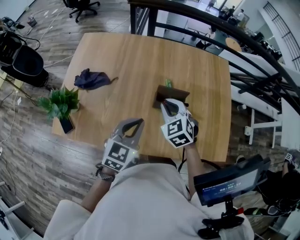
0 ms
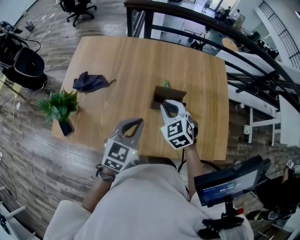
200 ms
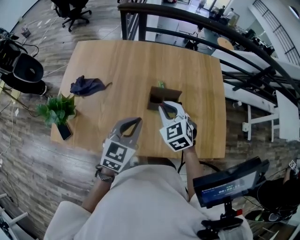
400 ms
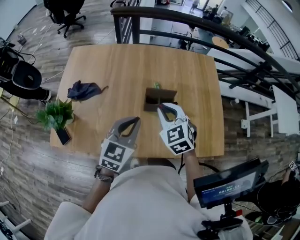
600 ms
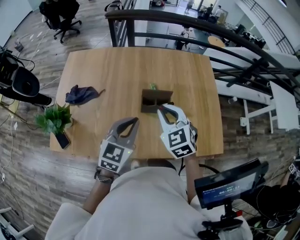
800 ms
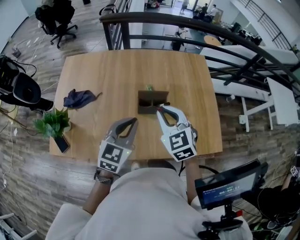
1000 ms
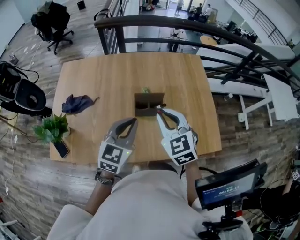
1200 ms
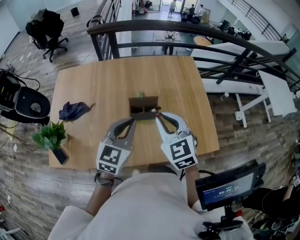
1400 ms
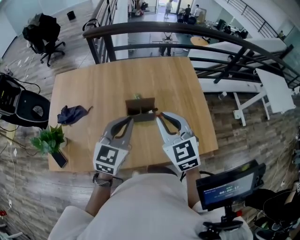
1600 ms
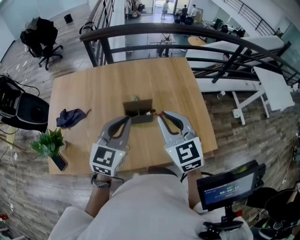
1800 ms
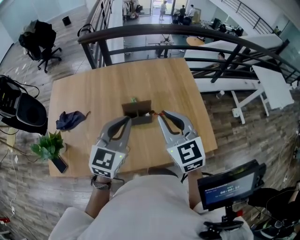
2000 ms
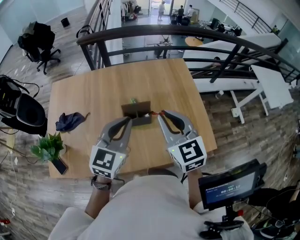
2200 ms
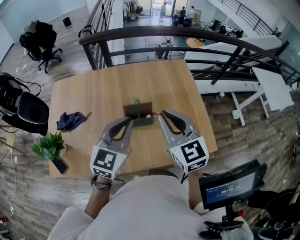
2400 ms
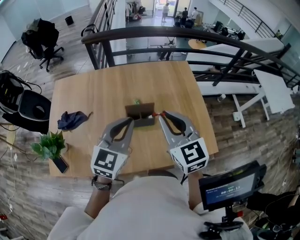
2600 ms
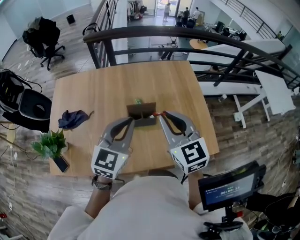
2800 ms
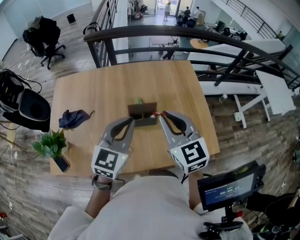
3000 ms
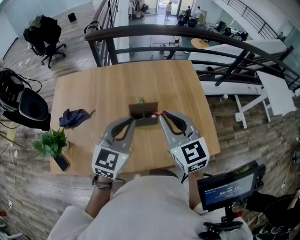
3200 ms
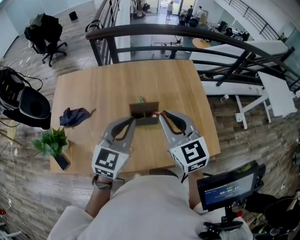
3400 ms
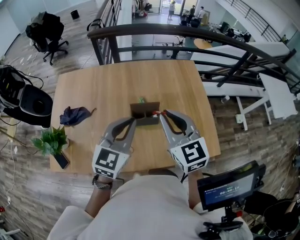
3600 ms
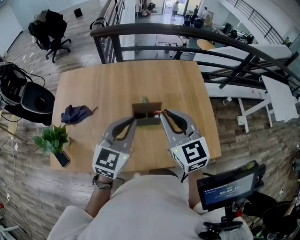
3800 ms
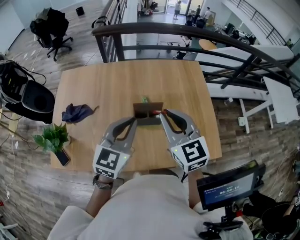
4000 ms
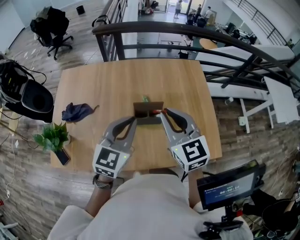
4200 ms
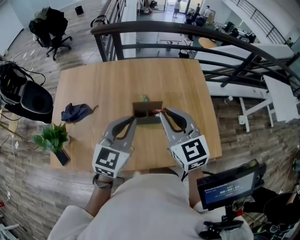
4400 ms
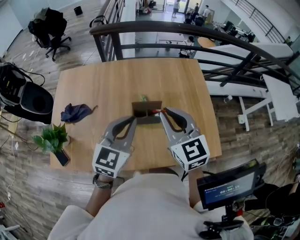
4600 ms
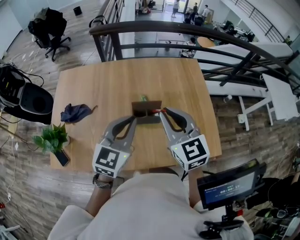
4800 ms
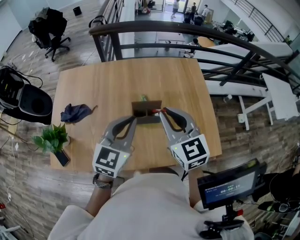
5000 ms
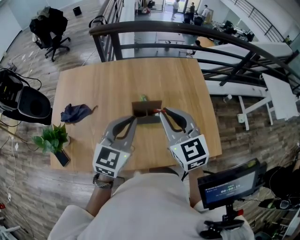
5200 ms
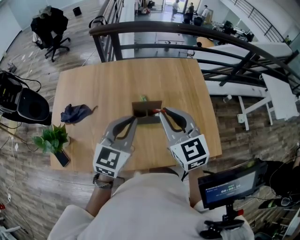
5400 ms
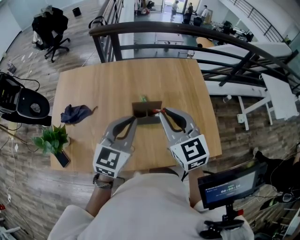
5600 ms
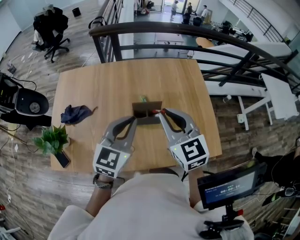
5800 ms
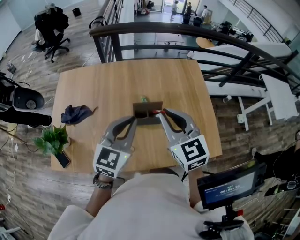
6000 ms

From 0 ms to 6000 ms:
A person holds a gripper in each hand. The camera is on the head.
From 0 ms to 1600 ms: The right gripper goes about 15 cm upward, to the right and backward, and swivels roughly 30 degrees, while the left gripper shifts some 10 cm upward and to the right.
From 1600 ms to 4400 ms: The grippers make only small movements.
From 4400 ms to 6000 ms: The two grippers keep their place.

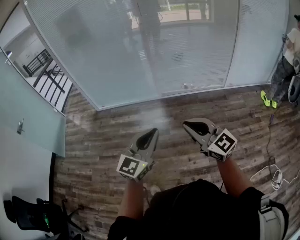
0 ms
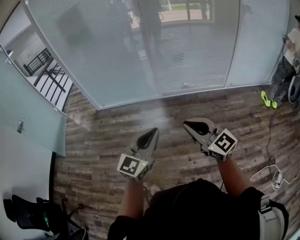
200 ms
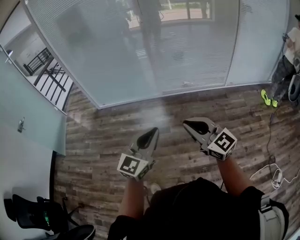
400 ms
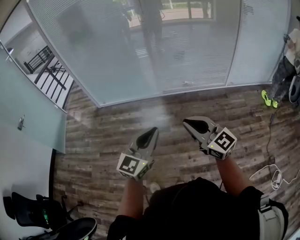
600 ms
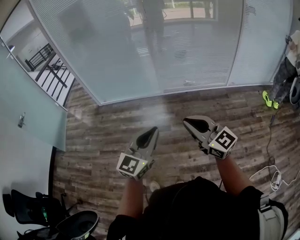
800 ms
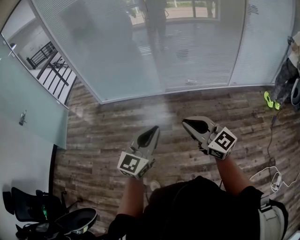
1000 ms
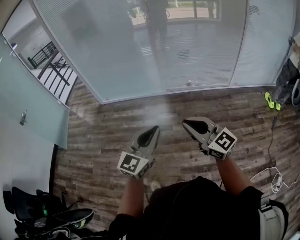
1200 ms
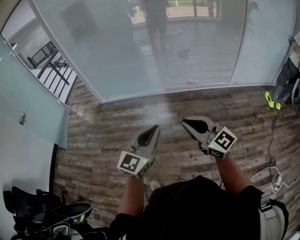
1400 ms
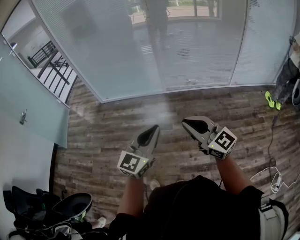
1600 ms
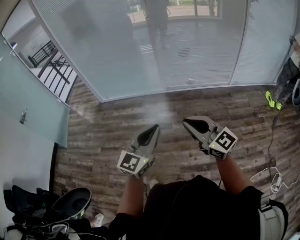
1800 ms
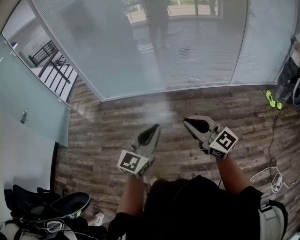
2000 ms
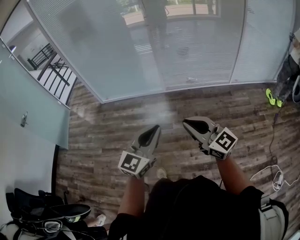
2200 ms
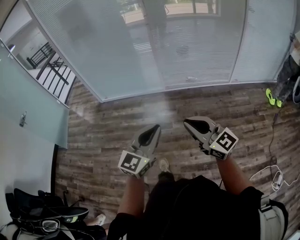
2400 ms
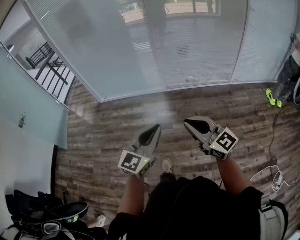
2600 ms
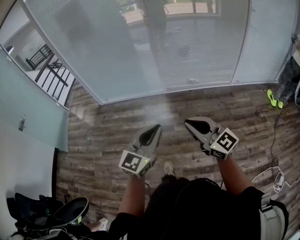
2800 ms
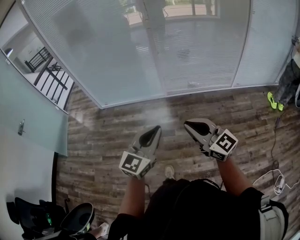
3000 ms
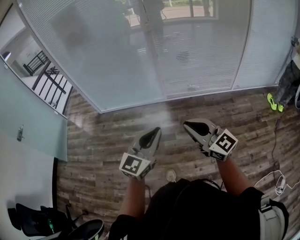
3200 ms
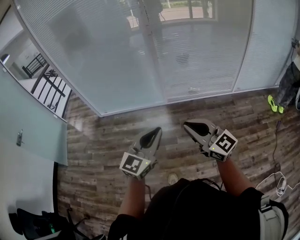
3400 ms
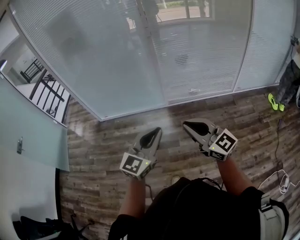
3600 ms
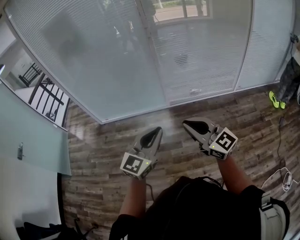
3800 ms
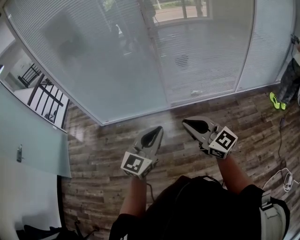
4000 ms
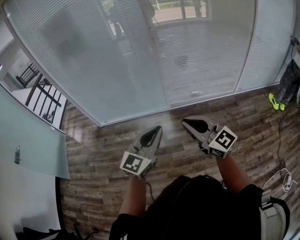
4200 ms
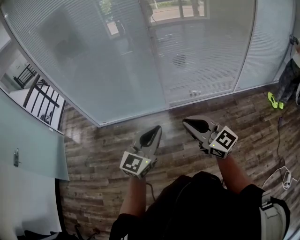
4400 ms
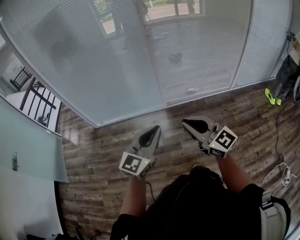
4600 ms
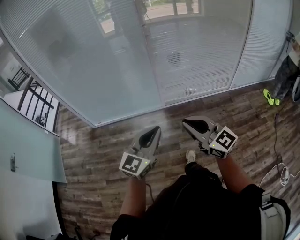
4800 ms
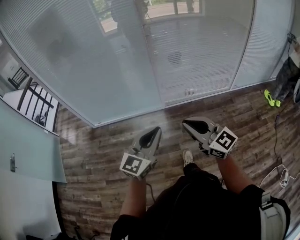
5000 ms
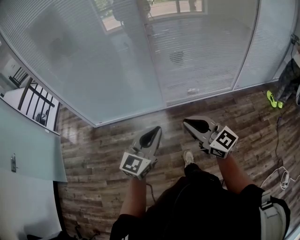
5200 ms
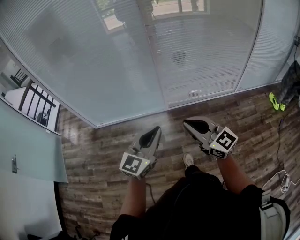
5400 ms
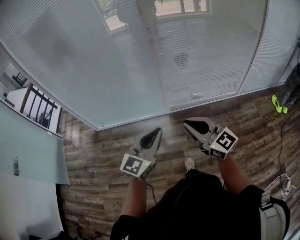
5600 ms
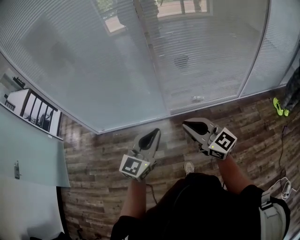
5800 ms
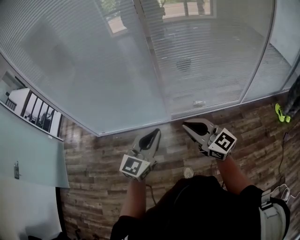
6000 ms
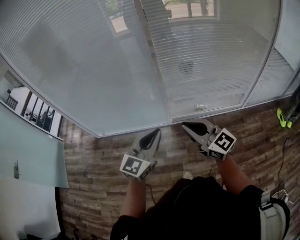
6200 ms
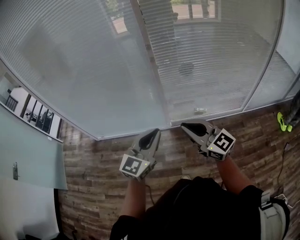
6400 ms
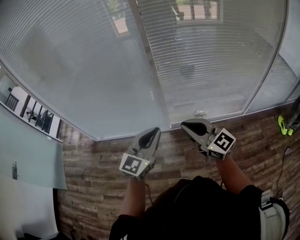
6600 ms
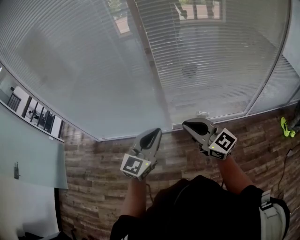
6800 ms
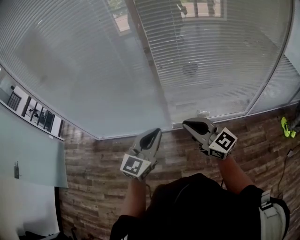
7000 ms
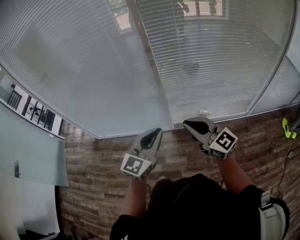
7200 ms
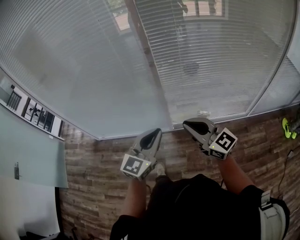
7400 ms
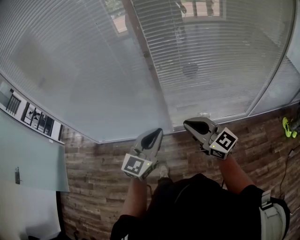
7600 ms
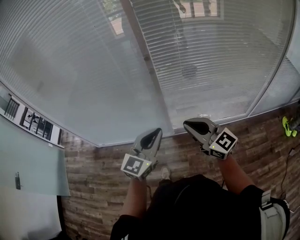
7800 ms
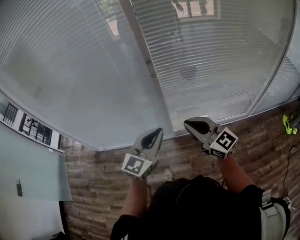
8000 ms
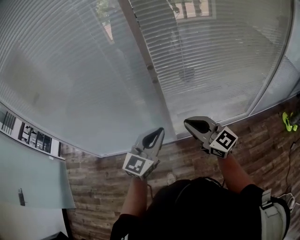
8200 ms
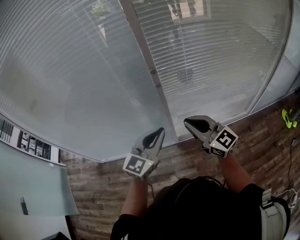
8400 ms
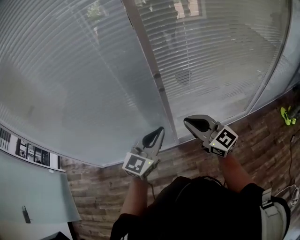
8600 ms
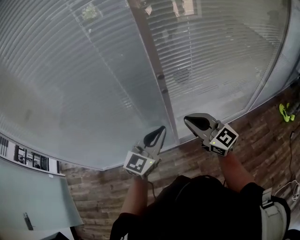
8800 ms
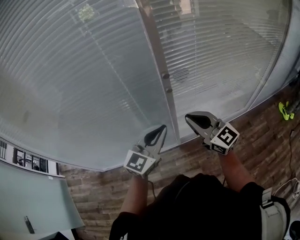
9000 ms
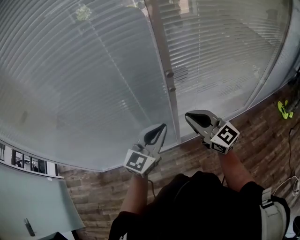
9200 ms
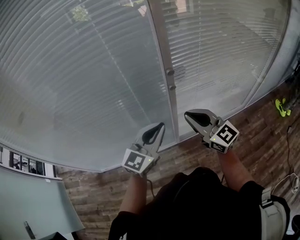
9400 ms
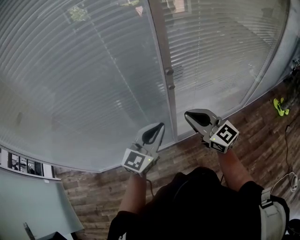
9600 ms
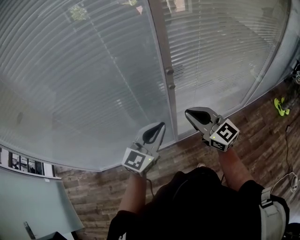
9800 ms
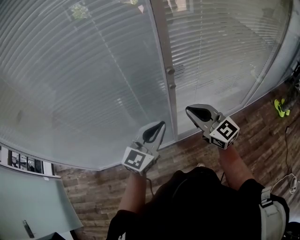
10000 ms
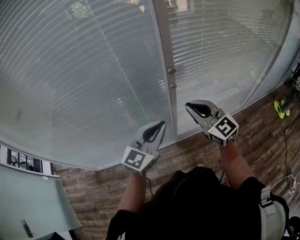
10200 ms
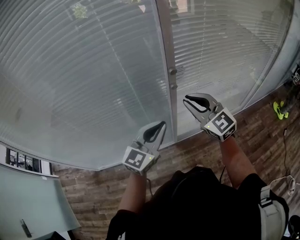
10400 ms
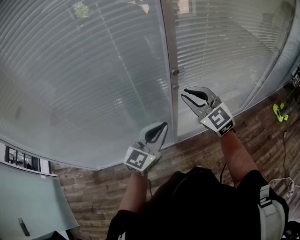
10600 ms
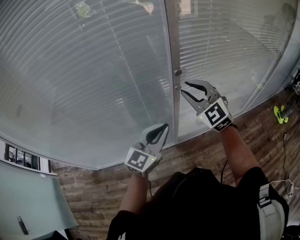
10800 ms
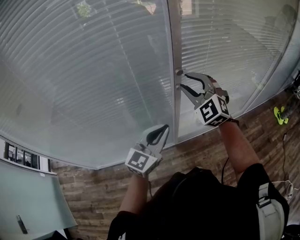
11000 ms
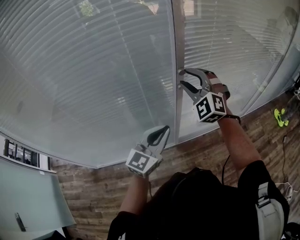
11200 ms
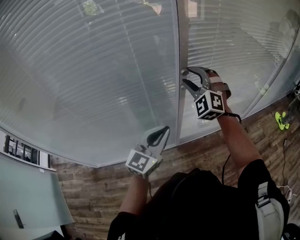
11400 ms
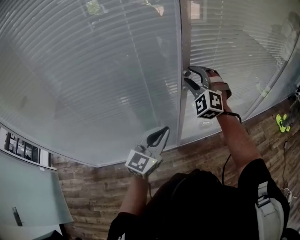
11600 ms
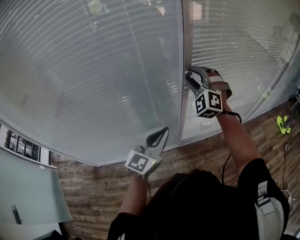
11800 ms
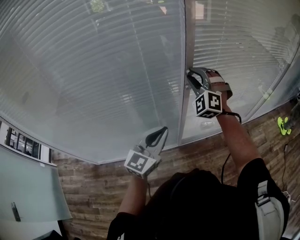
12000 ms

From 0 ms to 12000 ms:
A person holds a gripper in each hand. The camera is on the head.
From 0 ms to 1600 ms: There are only small adjustments of the grippers.
From 1600 ms to 3000 ms: The grippers both shift forward by approximately 10 cm.
From 3000 ms to 4400 ms: The grippers both shift forward and to the left by about 20 cm.
From 4400 ms to 6000 ms: Both grippers travel together forward, approximately 20 cm.
From 6000 ms to 7600 ms: Both grippers travel together forward and to the right, about 15 cm.
From 7600 ms to 9000 ms: The two grippers go roughly 20 cm forward and to the left.
From 9000 ms to 10400 ms: The right gripper moves forward, roughly 5 cm, and changes its angle by about 20 degrees.
From 10400 ms to 12000 ms: The right gripper travels forward by approximately 10 cm, rotates around the line of its fingers by some 50 degrees, counterclockwise from behind, and opens.

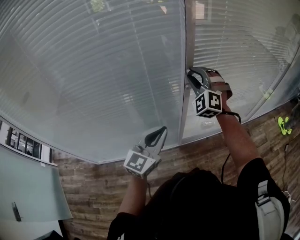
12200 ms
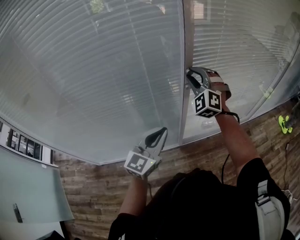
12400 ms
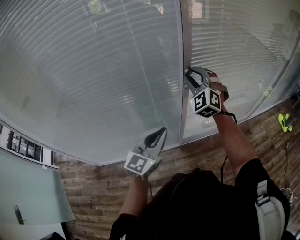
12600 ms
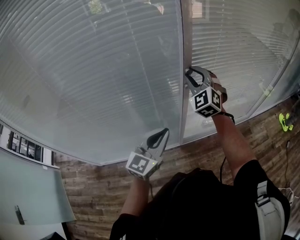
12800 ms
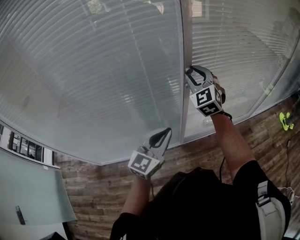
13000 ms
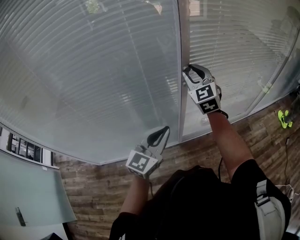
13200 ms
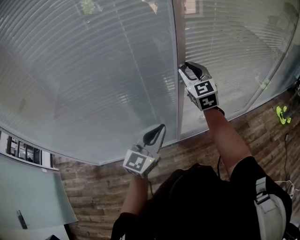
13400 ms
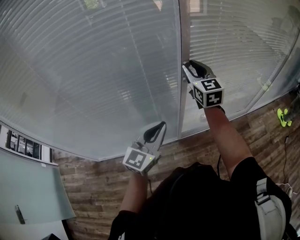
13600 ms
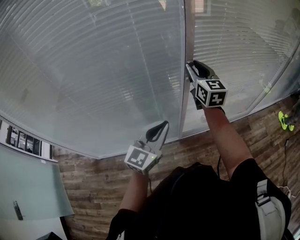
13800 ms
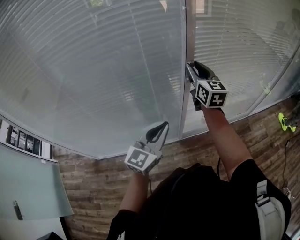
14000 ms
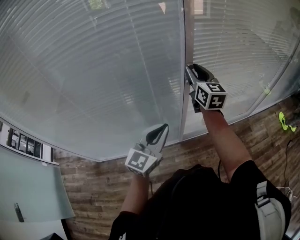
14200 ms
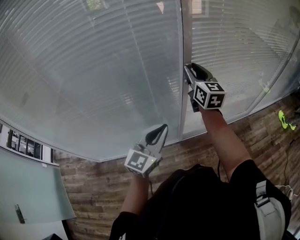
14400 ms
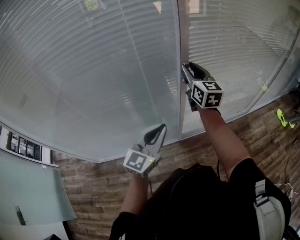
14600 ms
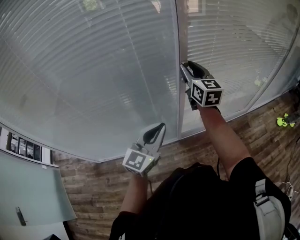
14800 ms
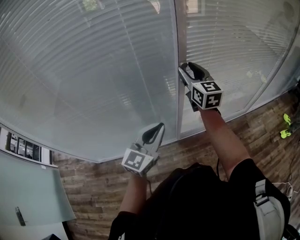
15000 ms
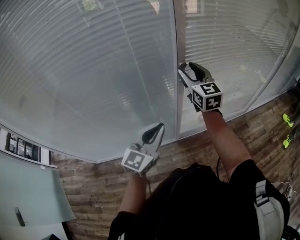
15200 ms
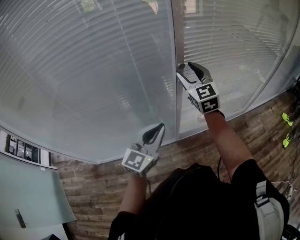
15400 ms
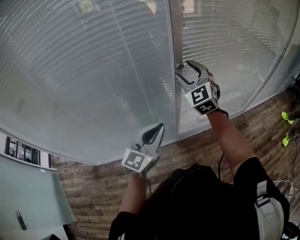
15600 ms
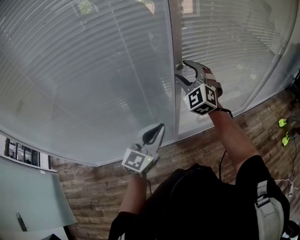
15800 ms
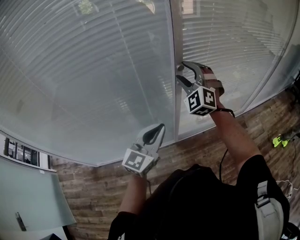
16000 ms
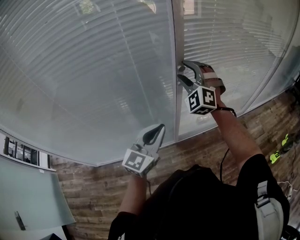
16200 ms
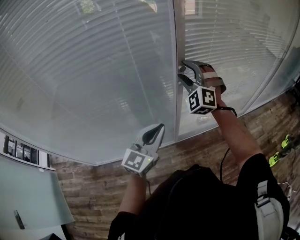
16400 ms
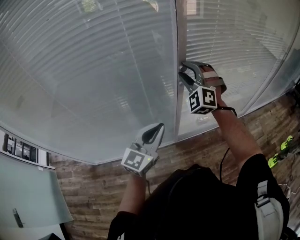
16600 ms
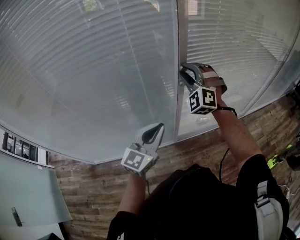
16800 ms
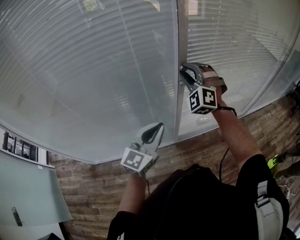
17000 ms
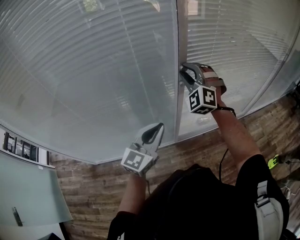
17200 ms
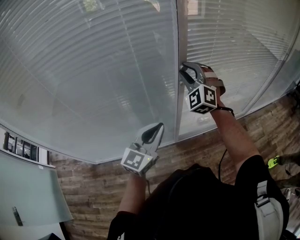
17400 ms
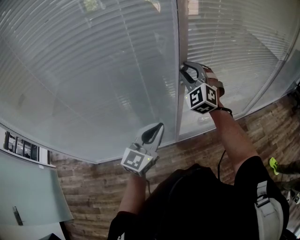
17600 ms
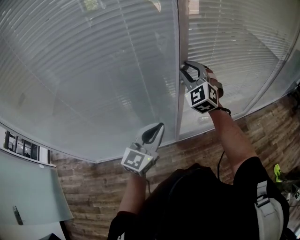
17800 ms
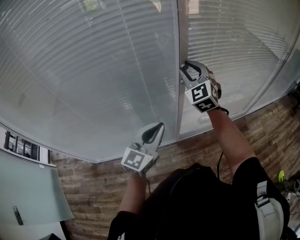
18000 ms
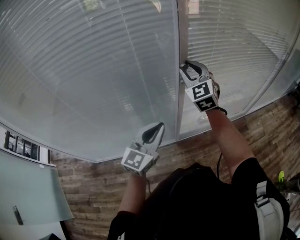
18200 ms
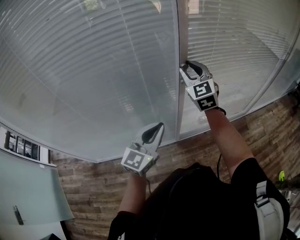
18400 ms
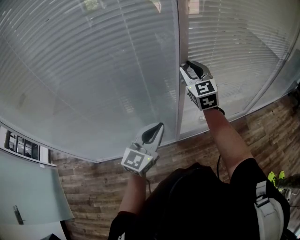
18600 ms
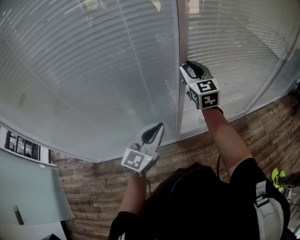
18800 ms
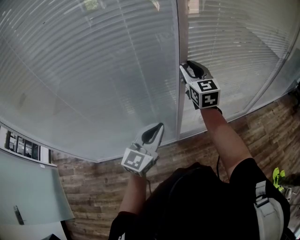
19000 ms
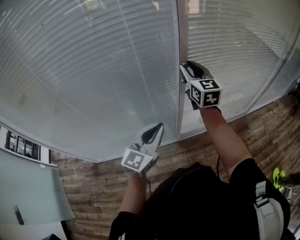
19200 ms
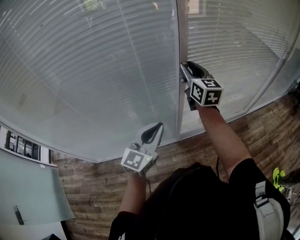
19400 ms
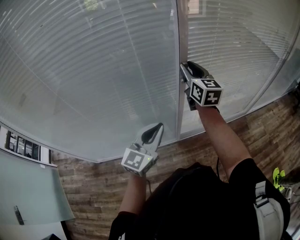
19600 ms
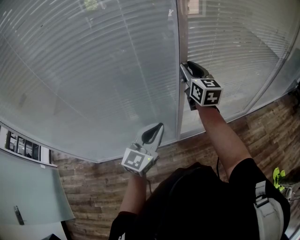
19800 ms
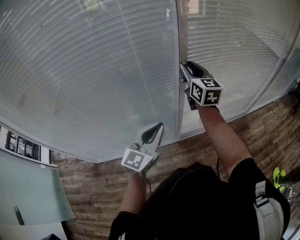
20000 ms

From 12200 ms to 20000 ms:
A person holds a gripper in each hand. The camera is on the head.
From 12200 ms to 13800 ms: The right gripper rotates around the line of its fingers by about 70 degrees, clockwise from behind.
From 13800 ms to 15400 ms: The right gripper turns by some 20 degrees, and opens its fingers.
From 15400 ms to 16800 ms: The right gripper rolls counterclockwise, seen from behind, by about 50 degrees, and closes up.
From 16800 ms to 18400 ms: The right gripper rotates around the line of its fingers by roughly 50 degrees, clockwise from behind.
From 18400 ms to 20000 ms: The right gripper rotates roughly 30 degrees.
